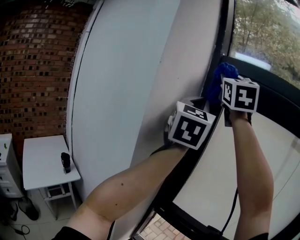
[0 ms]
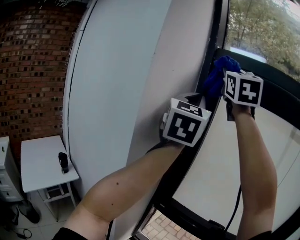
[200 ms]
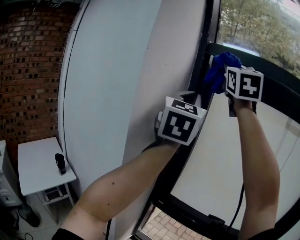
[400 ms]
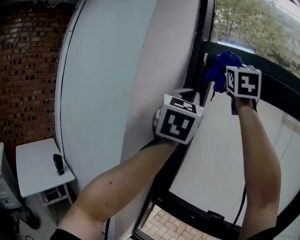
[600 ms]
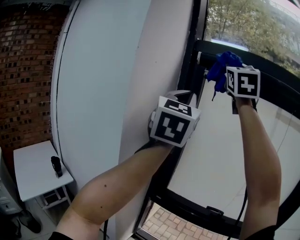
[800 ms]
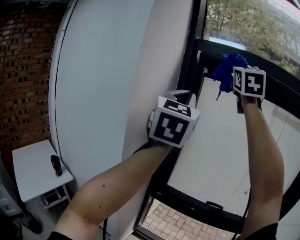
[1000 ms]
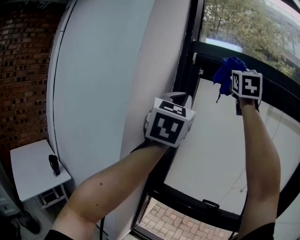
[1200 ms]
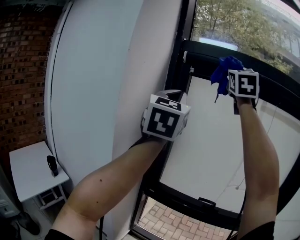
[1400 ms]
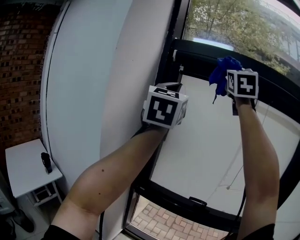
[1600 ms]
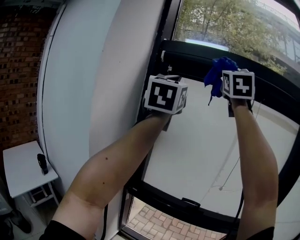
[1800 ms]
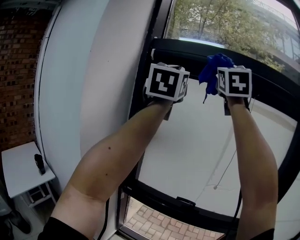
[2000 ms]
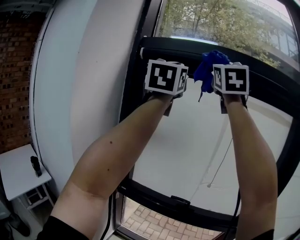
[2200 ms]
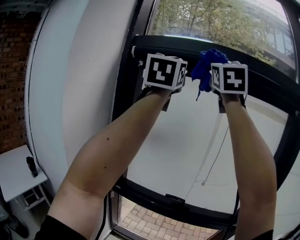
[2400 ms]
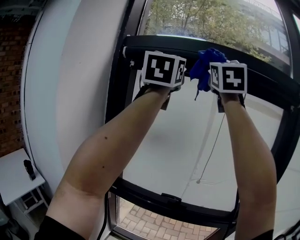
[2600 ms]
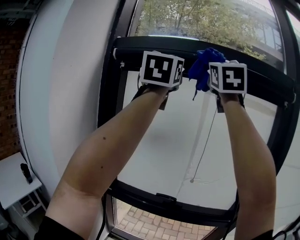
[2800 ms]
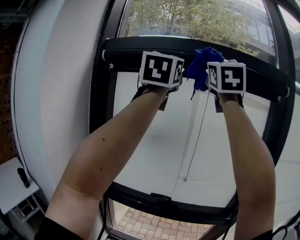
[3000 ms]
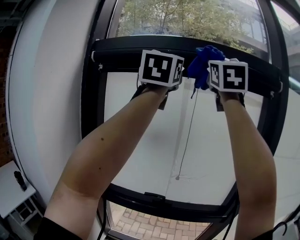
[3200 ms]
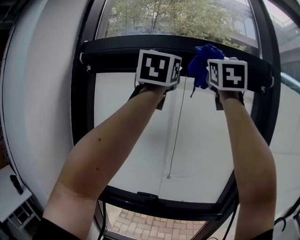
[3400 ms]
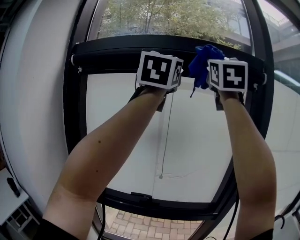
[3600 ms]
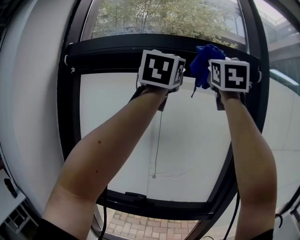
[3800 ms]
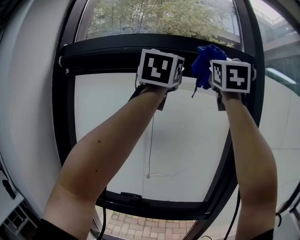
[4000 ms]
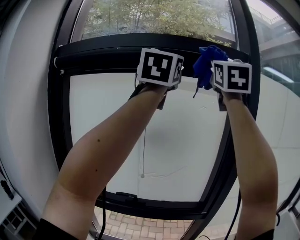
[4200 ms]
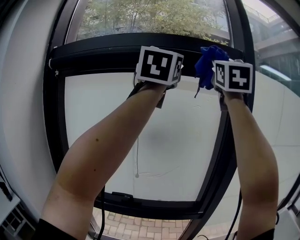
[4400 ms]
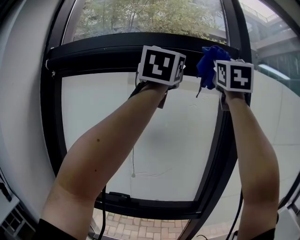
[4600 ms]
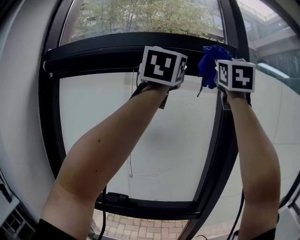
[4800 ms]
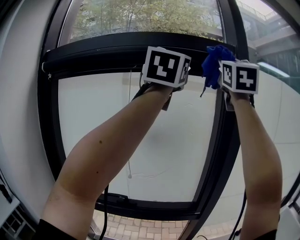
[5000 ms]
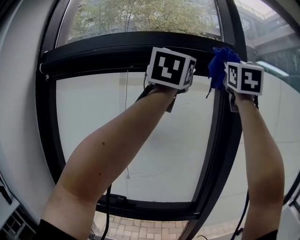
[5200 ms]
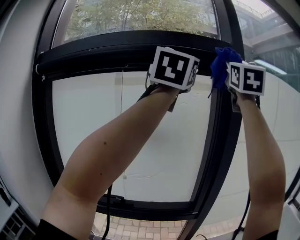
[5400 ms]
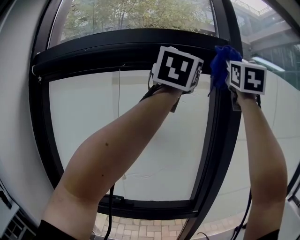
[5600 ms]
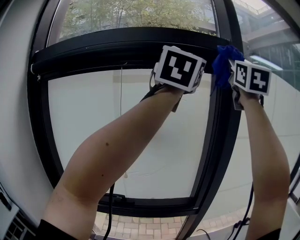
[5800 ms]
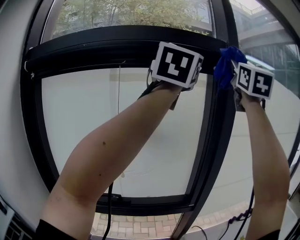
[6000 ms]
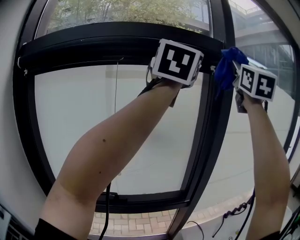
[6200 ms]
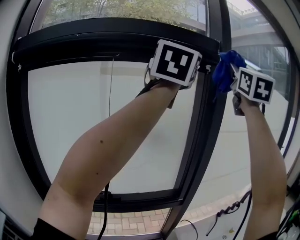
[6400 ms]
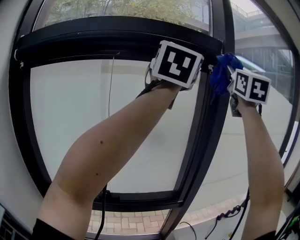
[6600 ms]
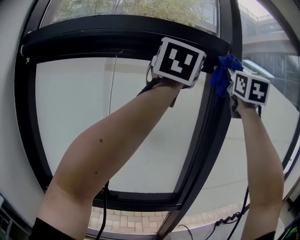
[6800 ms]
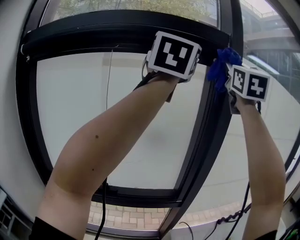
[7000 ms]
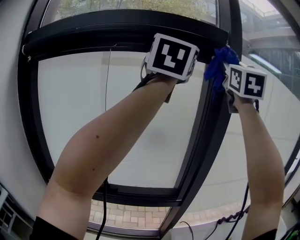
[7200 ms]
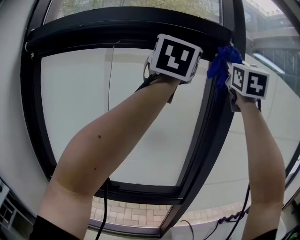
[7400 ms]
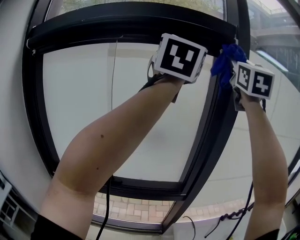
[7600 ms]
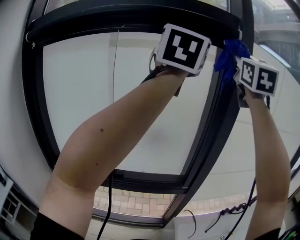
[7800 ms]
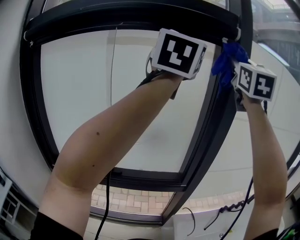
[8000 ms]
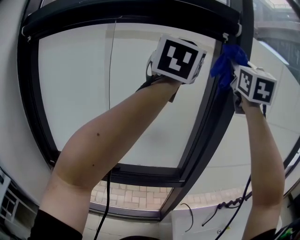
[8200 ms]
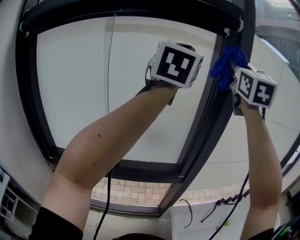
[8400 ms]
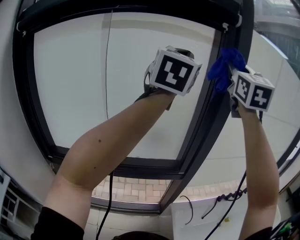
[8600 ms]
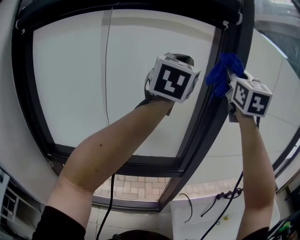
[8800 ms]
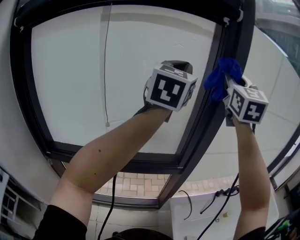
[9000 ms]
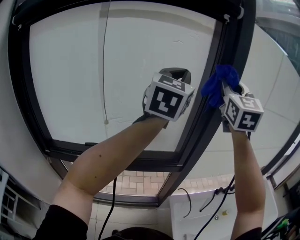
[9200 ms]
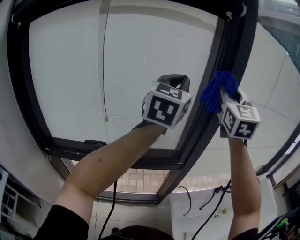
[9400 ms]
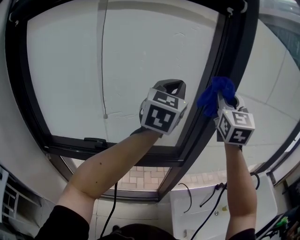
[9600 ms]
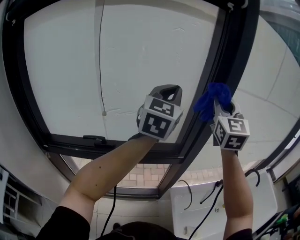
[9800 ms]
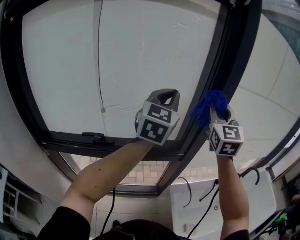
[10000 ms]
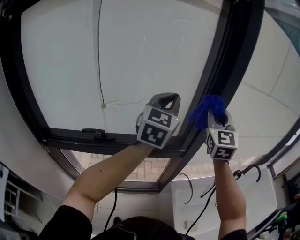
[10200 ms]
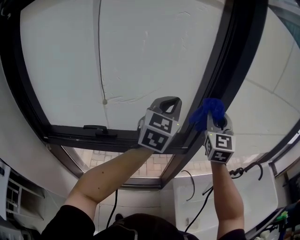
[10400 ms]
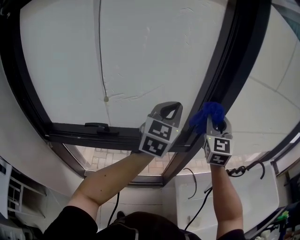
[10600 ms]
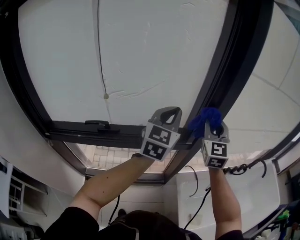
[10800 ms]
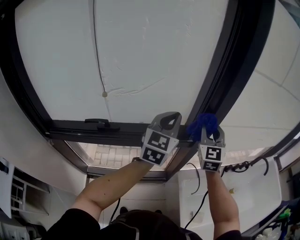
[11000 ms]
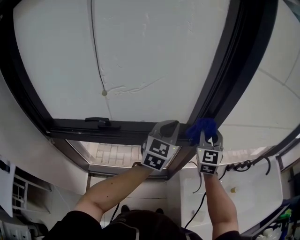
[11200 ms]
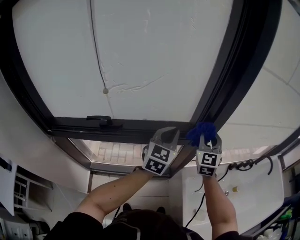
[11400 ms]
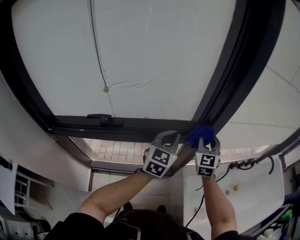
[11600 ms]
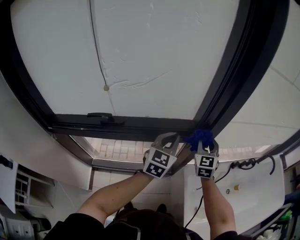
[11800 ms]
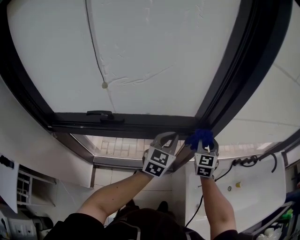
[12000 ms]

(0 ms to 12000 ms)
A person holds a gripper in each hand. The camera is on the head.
0 ms - 1600 ms: The right gripper moves to the right, approximately 20 cm, and changes its angle by about 20 degrees. Meanwhile the left gripper is displaced to the right and backward by roughly 10 cm.
1600 ms - 3000 ms: The right gripper is displaced to the right by about 20 cm, while the left gripper moves to the right and upward, roughly 25 cm.
3000 ms - 4400 ms: The two grippers go approximately 25 cm to the right.
4400 ms - 6000 ms: Both grippers travel together to the right, about 10 cm.
6000 ms - 7600 ms: The right gripper shifts roughly 5 cm forward.
7600 ms - 9000 ms: The two grippers go approximately 15 cm downward.
9000 ms - 10400 ms: Both grippers move downward, approximately 25 cm.
10400 ms - 12000 ms: Both grippers move downward, approximately 25 cm. The right gripper changes its angle by some 20 degrees.

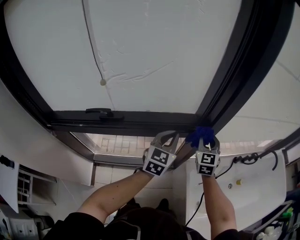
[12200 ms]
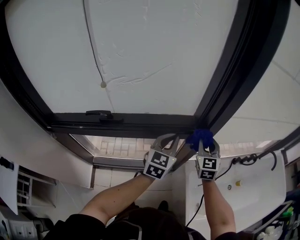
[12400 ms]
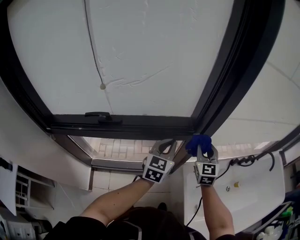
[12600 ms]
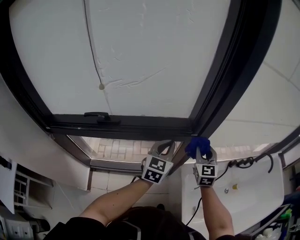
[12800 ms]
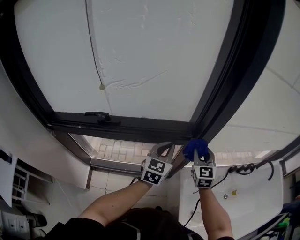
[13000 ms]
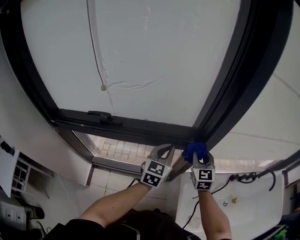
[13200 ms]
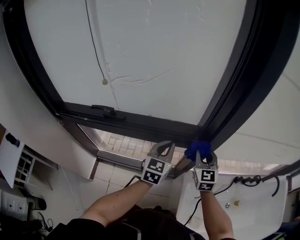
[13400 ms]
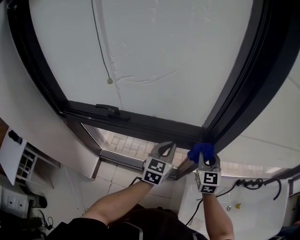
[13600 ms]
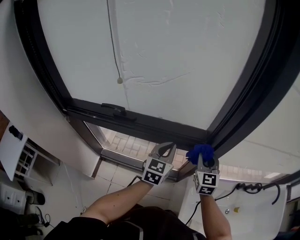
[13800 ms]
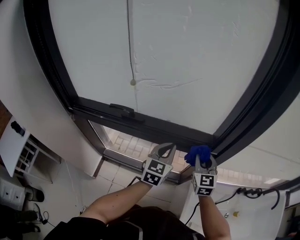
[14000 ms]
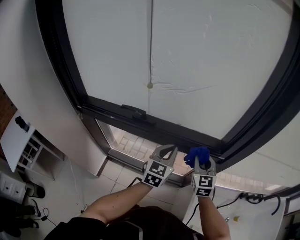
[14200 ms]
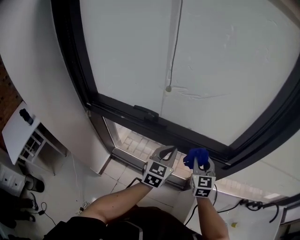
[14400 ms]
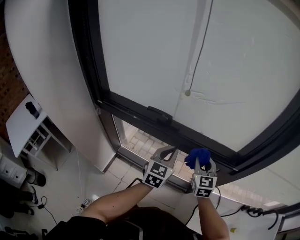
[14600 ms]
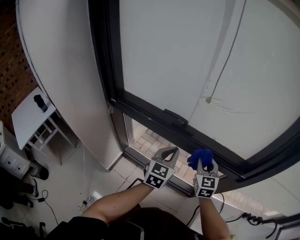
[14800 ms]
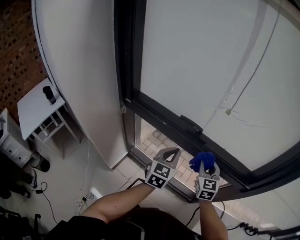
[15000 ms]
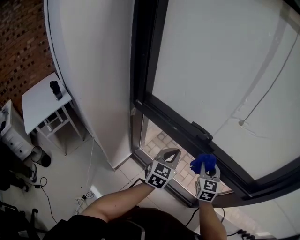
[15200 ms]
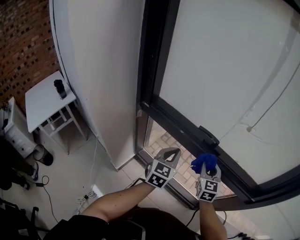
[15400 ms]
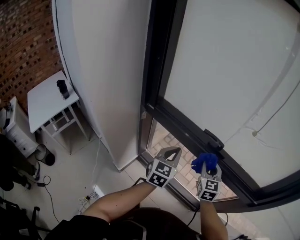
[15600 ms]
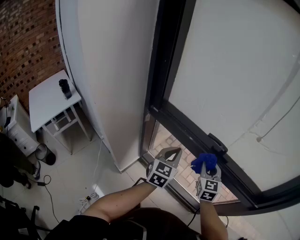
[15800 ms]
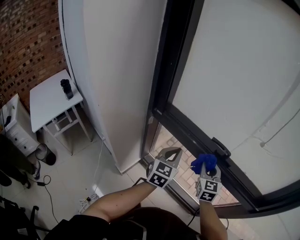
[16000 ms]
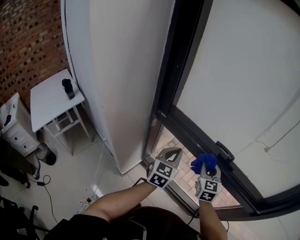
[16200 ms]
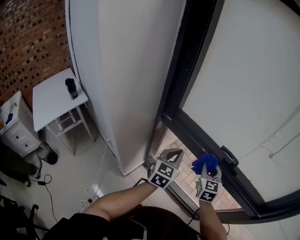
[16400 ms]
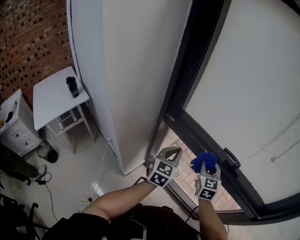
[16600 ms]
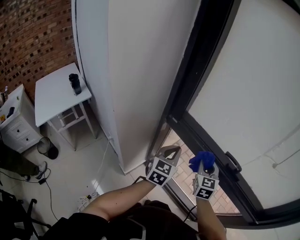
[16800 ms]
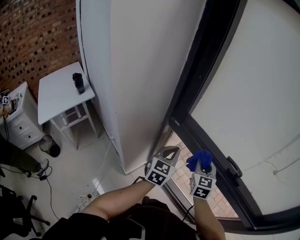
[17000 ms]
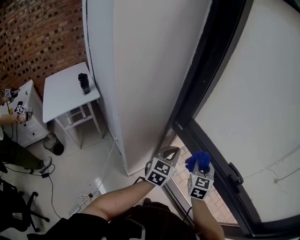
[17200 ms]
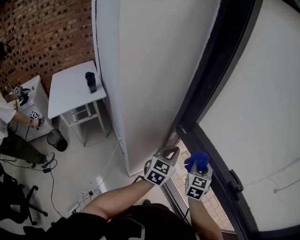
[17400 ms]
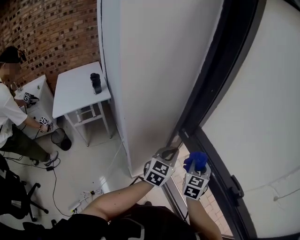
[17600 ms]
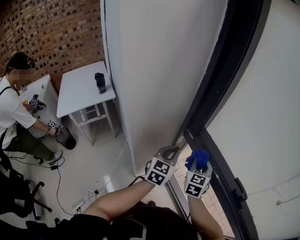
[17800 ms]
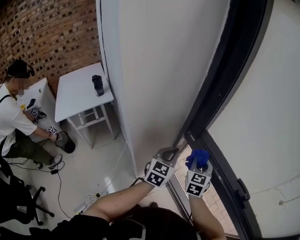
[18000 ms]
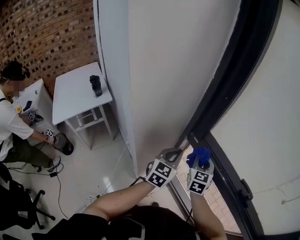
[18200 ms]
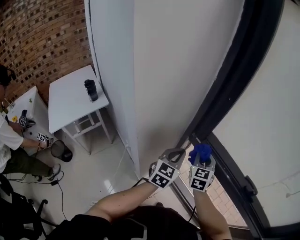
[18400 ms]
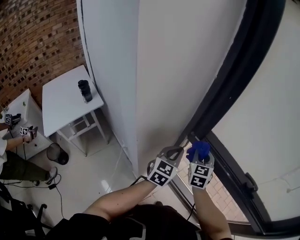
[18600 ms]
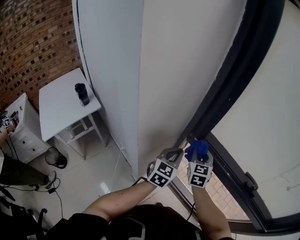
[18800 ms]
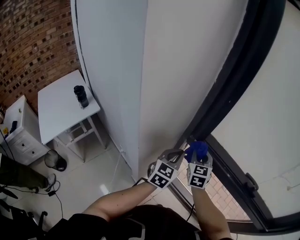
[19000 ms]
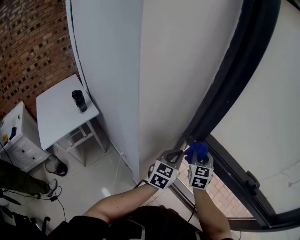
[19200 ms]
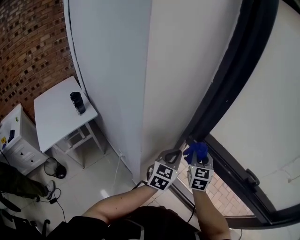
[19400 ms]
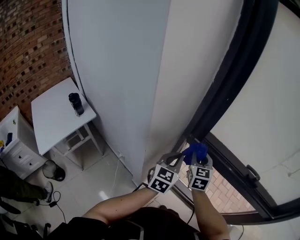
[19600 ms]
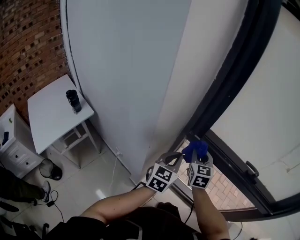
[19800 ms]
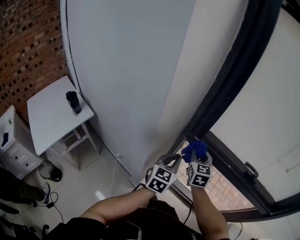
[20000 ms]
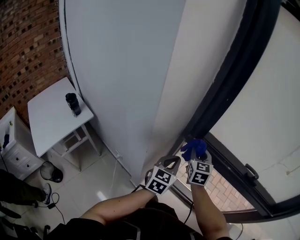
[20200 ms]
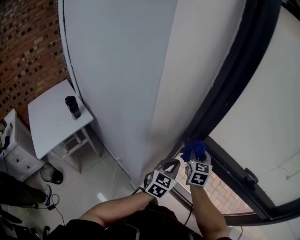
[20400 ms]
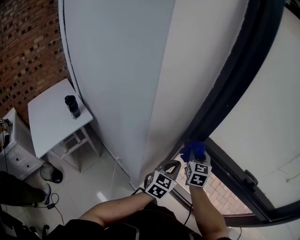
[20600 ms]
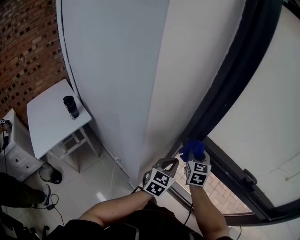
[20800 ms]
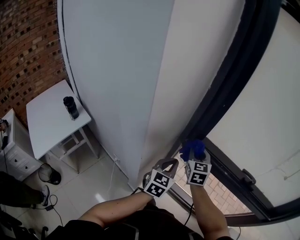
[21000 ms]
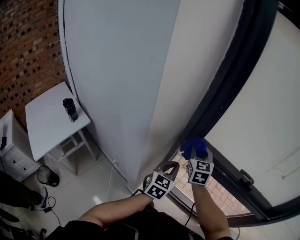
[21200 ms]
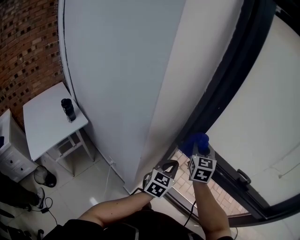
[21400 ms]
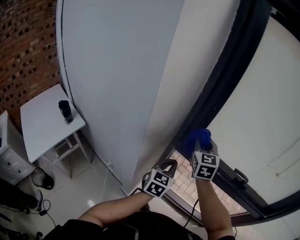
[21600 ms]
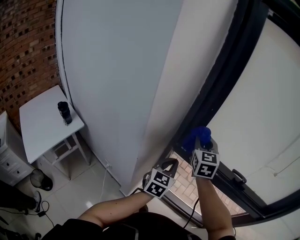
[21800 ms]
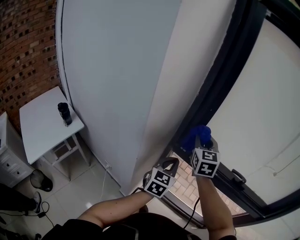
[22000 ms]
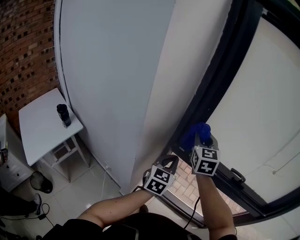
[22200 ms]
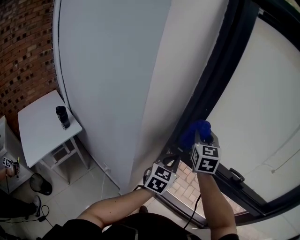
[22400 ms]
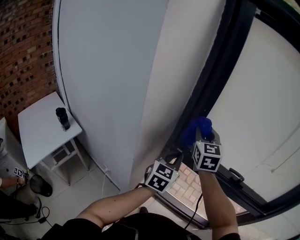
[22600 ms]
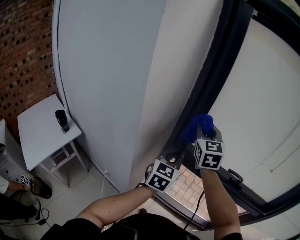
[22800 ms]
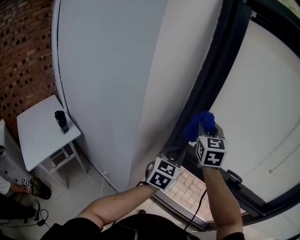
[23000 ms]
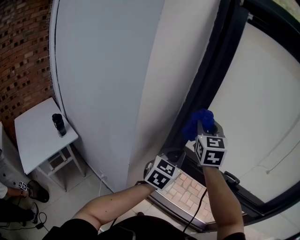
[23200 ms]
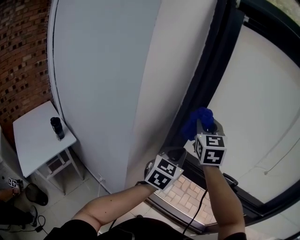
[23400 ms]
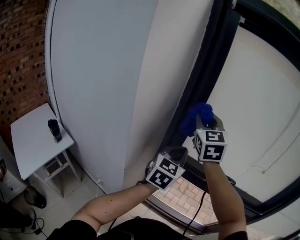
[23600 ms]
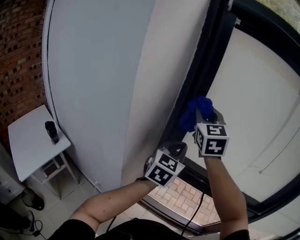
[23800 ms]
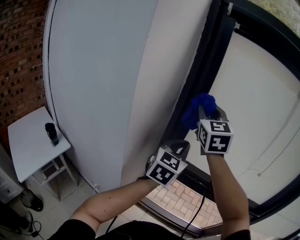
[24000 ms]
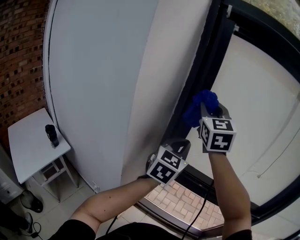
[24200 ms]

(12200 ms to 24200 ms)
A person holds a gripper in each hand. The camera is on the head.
12200 ms - 13800 ms: There are only small adjustments of the grippers.
13800 ms - 15200 ms: The two grippers go some 35 cm to the left. The left gripper swivels some 20 degrees.
15200 ms - 16600 ms: The two grippers go some 20 cm to the left.
16600 ms - 18200 ms: Both grippers move to the left and forward, roughly 15 cm.
18200 ms - 19800 ms: The right gripper changes place by some 5 cm.
19800 ms - 21200 ms: The right gripper moves roughly 5 cm.
21200 ms - 22600 ms: The right gripper travels upward by roughly 15 cm; the left gripper shifts approximately 10 cm upward.
22600 ms - 24200 ms: The grippers both shift upward by some 20 cm.
